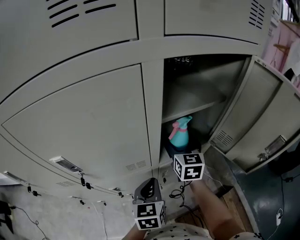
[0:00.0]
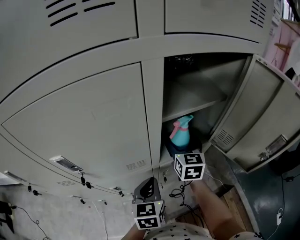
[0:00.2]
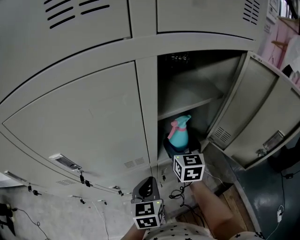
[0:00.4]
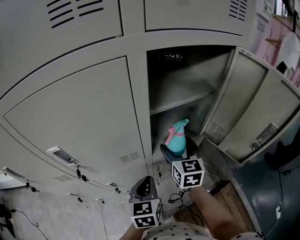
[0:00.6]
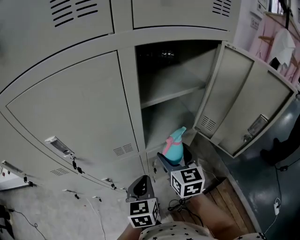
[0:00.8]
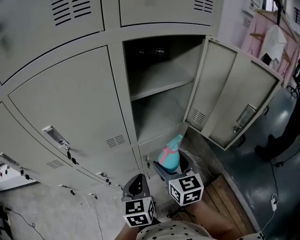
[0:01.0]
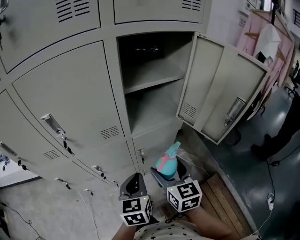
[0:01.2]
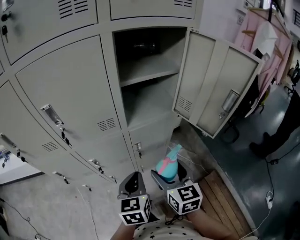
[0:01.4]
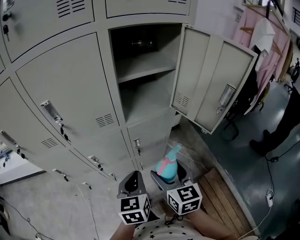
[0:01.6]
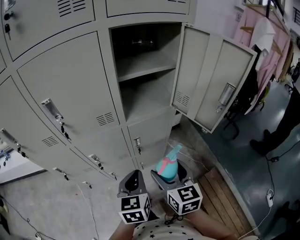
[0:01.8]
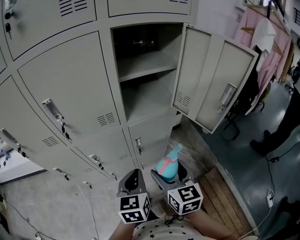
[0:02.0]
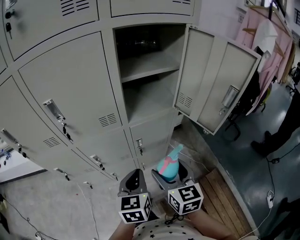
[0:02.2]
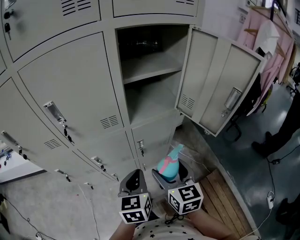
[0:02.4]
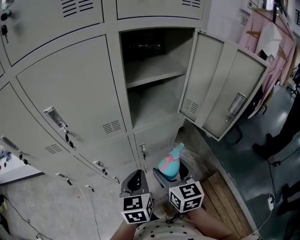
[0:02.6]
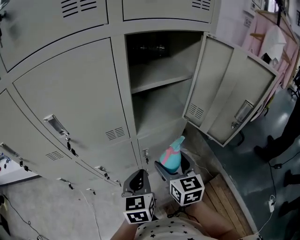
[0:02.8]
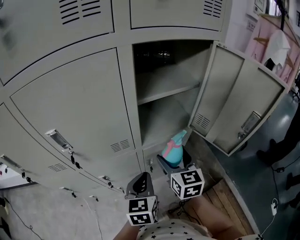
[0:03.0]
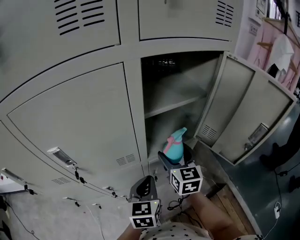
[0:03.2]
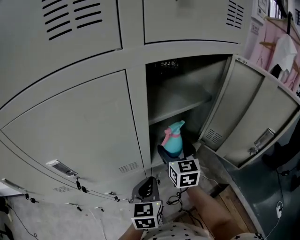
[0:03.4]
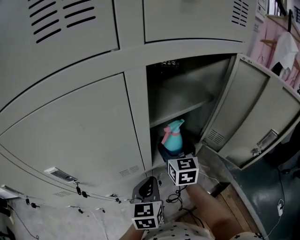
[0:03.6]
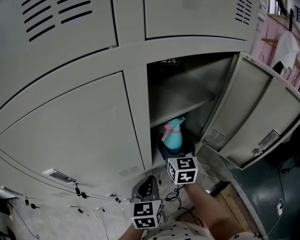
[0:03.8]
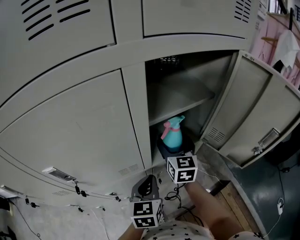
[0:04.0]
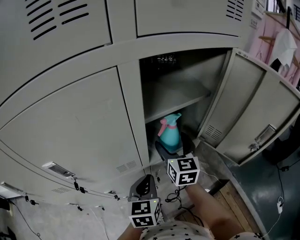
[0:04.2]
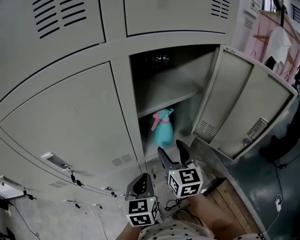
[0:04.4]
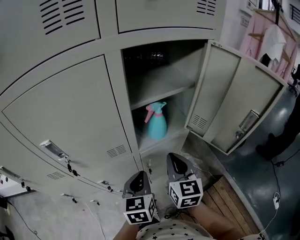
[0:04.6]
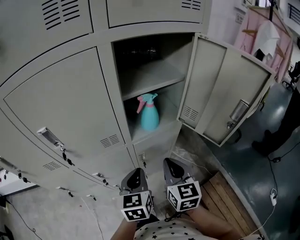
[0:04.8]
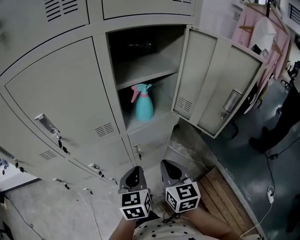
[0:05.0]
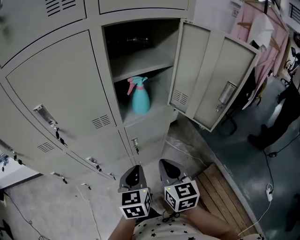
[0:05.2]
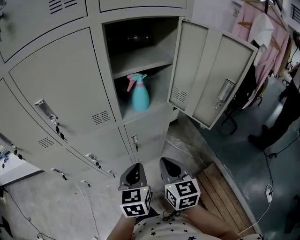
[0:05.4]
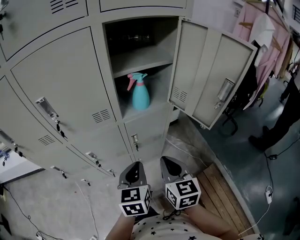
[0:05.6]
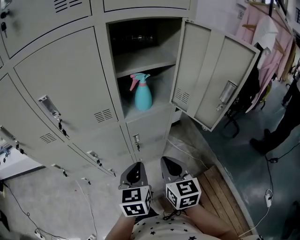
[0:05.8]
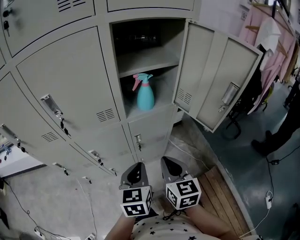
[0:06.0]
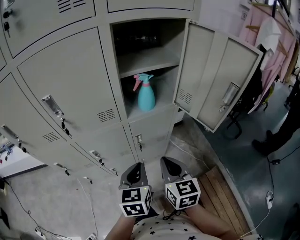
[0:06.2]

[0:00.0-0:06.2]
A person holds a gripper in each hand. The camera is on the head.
0:00.0 to 0:01.6: The right gripper travels backward by about 30 cm. The left gripper moves backward, about 15 cm.
0:01.6 to 0:03.2: The right gripper moves forward, about 25 cm. The left gripper heads forward, covering roughly 15 cm.
0:03.2 to 0:04.6: The right gripper goes approximately 10 cm backward, and closes up.
0:04.6 to 0:06.2: The grippers both shift backward by roughly 15 cm.

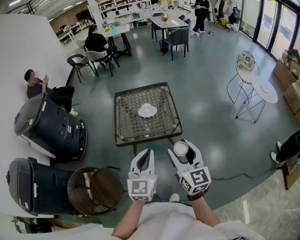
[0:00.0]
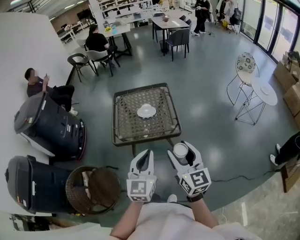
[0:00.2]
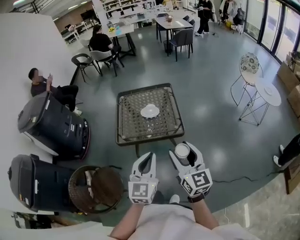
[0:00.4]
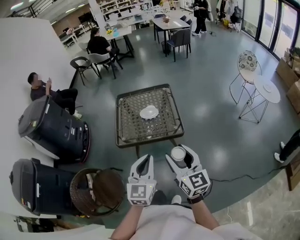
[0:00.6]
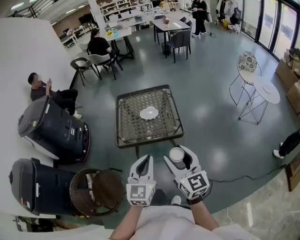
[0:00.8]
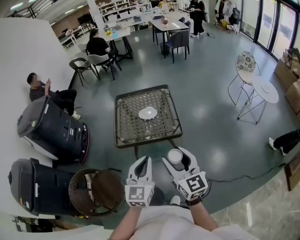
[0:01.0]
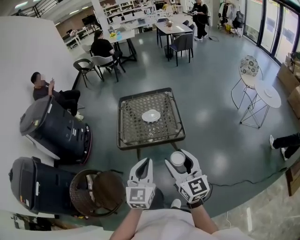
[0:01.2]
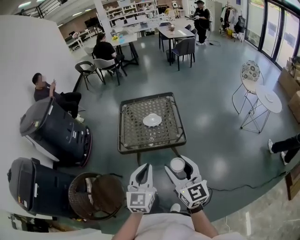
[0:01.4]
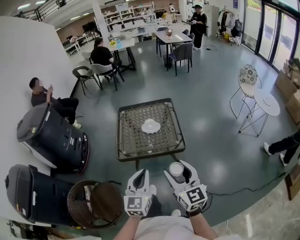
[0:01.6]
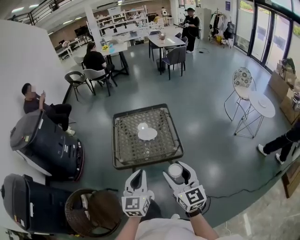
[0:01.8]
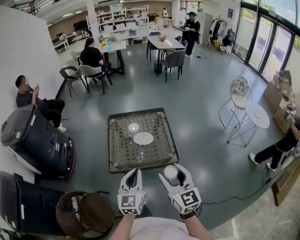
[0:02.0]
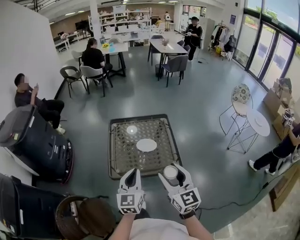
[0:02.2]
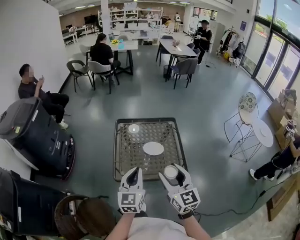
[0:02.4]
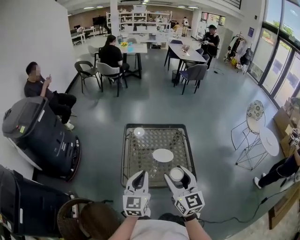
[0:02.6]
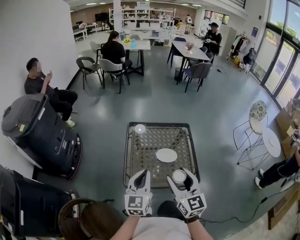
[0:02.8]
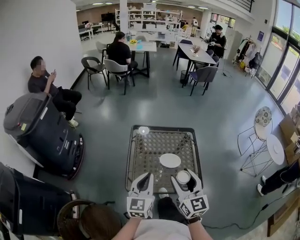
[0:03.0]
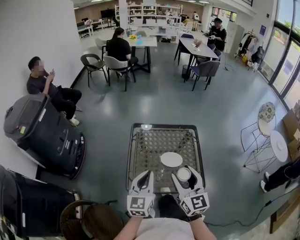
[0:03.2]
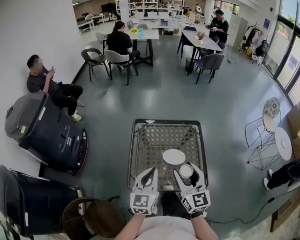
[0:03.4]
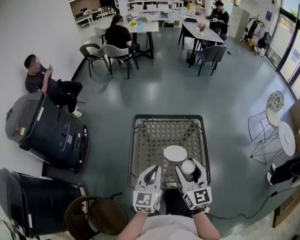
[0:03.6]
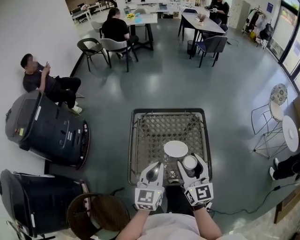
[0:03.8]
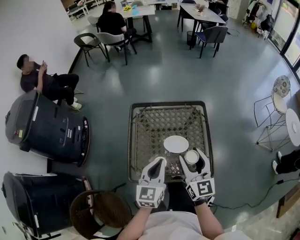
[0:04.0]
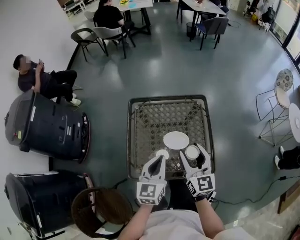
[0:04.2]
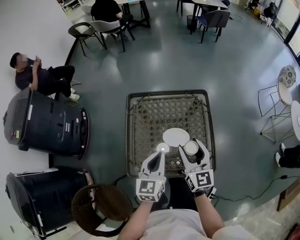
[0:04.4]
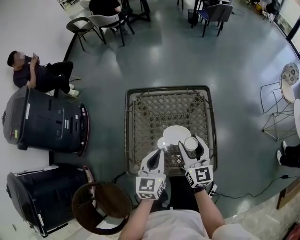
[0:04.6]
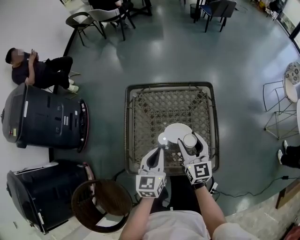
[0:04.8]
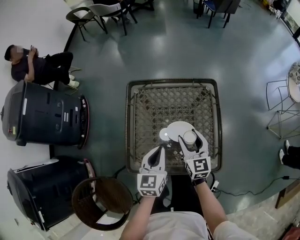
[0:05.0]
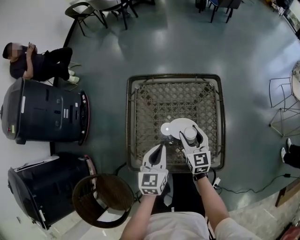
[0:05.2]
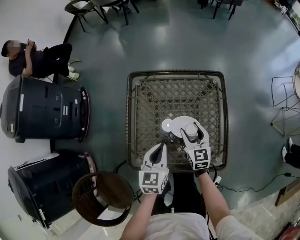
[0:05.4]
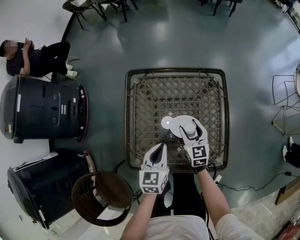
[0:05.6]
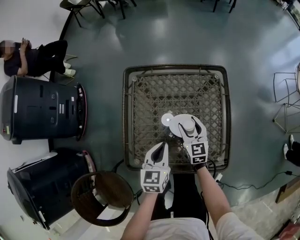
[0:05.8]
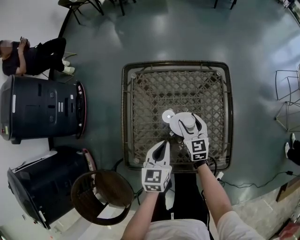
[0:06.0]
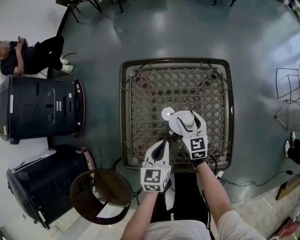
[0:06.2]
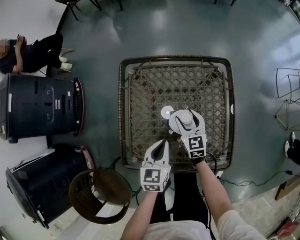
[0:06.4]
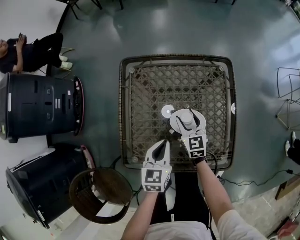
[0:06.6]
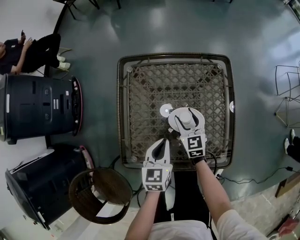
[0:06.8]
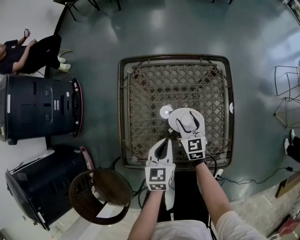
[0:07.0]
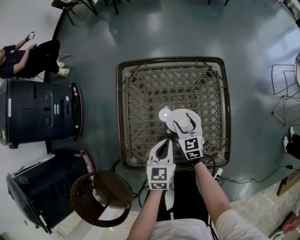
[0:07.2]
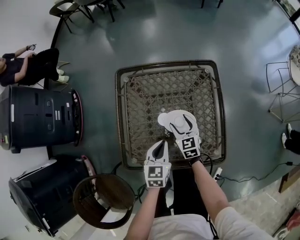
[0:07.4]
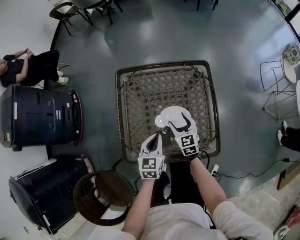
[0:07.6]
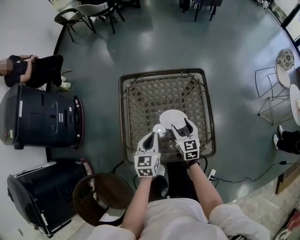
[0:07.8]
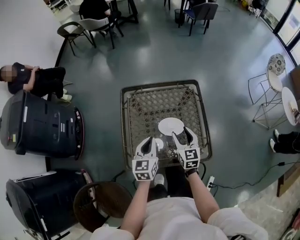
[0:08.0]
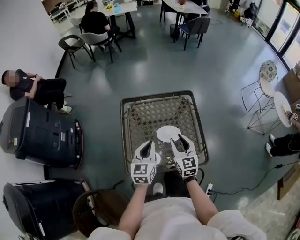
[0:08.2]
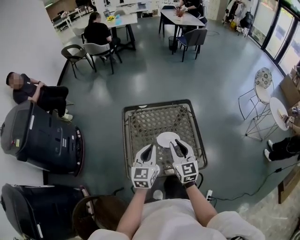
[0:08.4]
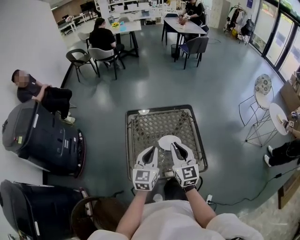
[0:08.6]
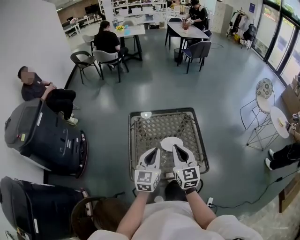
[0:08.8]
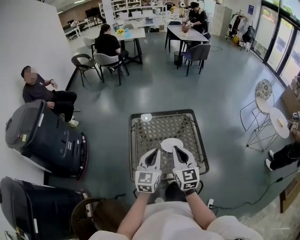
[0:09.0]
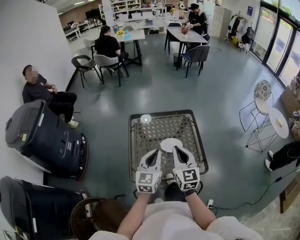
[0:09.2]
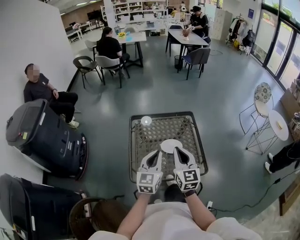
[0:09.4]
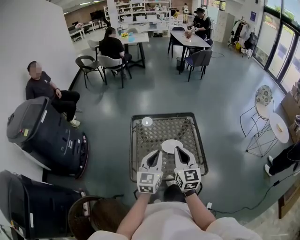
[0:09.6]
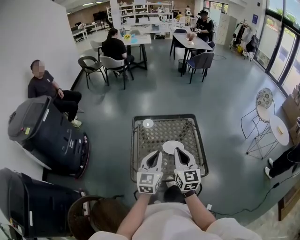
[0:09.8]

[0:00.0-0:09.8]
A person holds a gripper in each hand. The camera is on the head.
0:00.0 to 0:01.4: There are only small adjustments of the grippers.
0:01.4 to 0:02.8: Both grippers travel together forward and to the left, roughly 30 cm.
0:02.8 to 0:04.2: The left gripper moves forward, to the right and downward, approximately 15 cm. Meanwhile the right gripper travels forward, downward and to the right by roughly 20 cm.
0:04.2 to 0:05.6: The left gripper shifts about 15 cm downward; the right gripper heads downward and forward, covering roughly 25 cm, and rotates some 20 degrees.
0:05.6 to 0:07.0: The two grippers go some 5 cm downward.
0:07.0 to 0:08.4: The right gripper goes about 30 cm upward and backward, swivels about 20 degrees, and closes up, while the left gripper travels upward by some 20 cm, and turns by some 30 degrees.
0:08.4 to 0:09.8: The left gripper goes about 5 cm backward, while the right gripper shifts approximately 10 cm backward and upward.

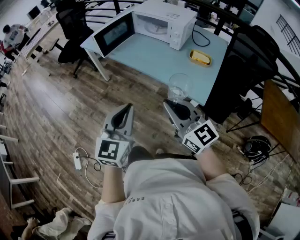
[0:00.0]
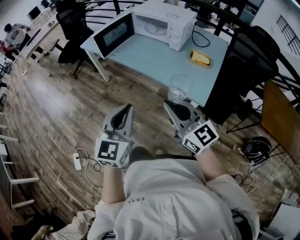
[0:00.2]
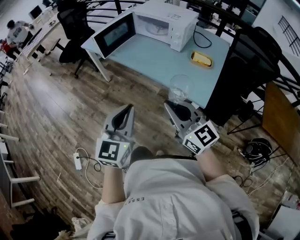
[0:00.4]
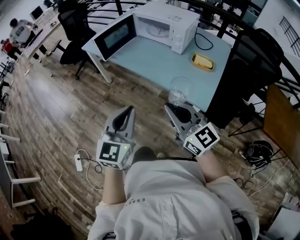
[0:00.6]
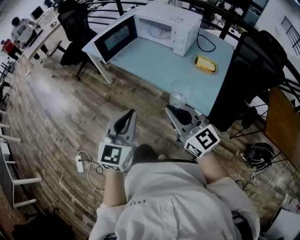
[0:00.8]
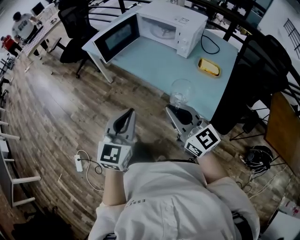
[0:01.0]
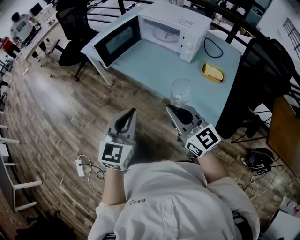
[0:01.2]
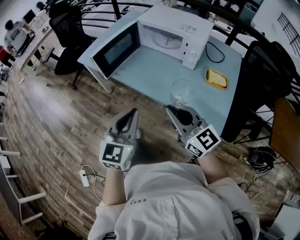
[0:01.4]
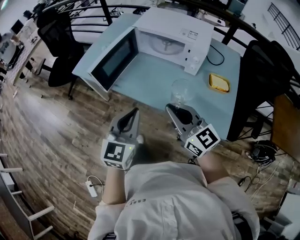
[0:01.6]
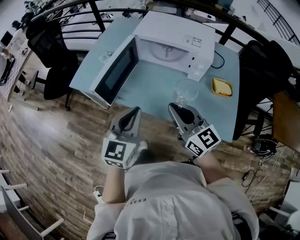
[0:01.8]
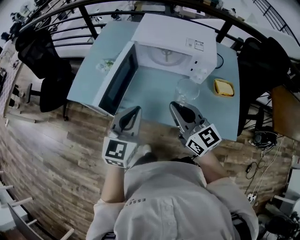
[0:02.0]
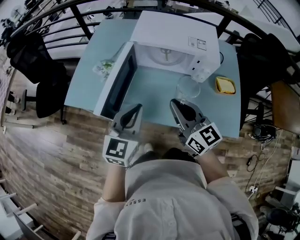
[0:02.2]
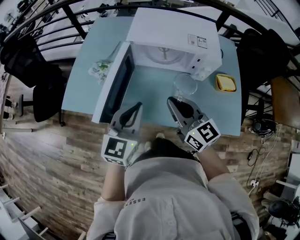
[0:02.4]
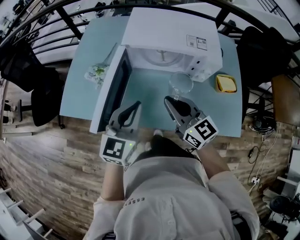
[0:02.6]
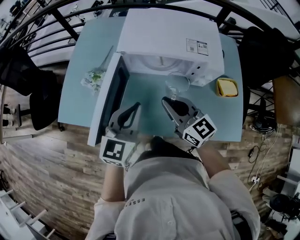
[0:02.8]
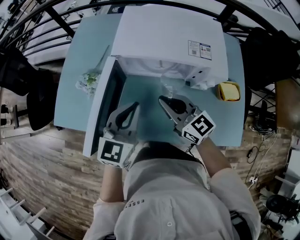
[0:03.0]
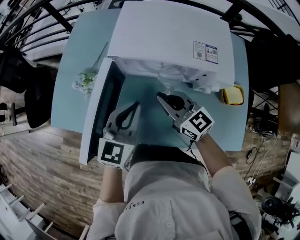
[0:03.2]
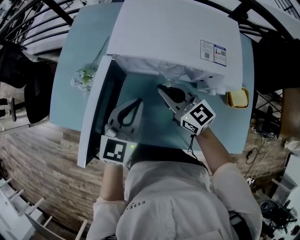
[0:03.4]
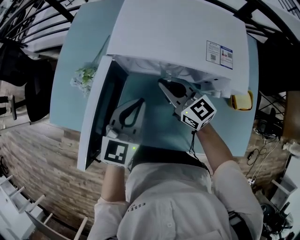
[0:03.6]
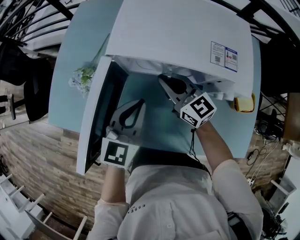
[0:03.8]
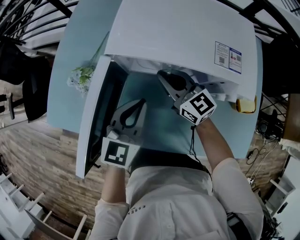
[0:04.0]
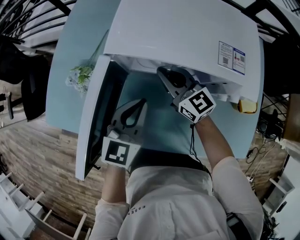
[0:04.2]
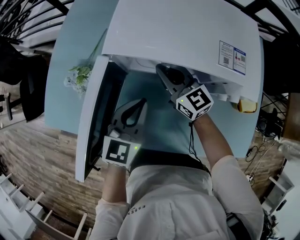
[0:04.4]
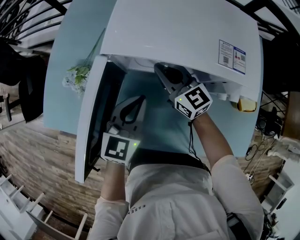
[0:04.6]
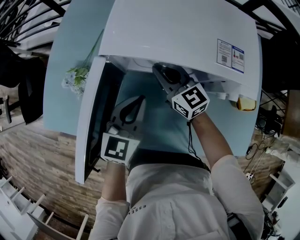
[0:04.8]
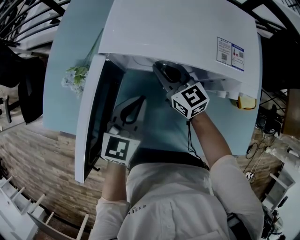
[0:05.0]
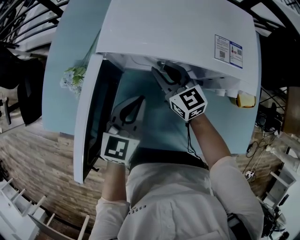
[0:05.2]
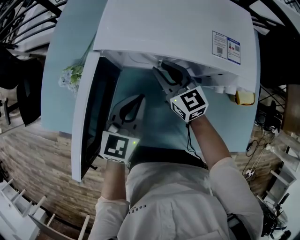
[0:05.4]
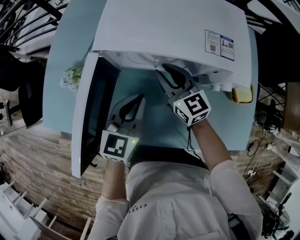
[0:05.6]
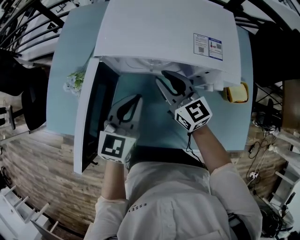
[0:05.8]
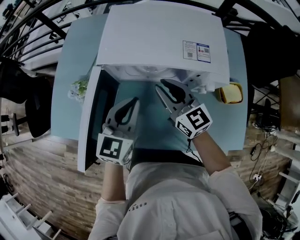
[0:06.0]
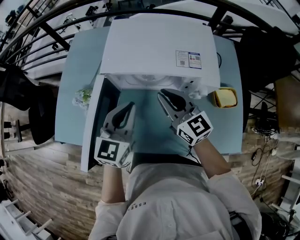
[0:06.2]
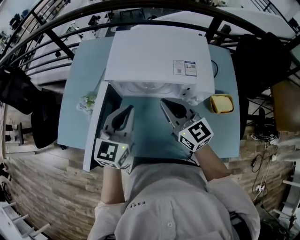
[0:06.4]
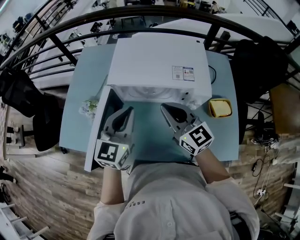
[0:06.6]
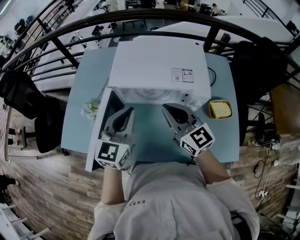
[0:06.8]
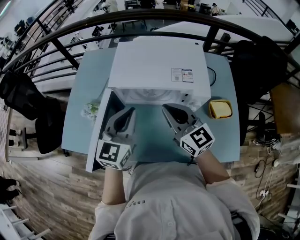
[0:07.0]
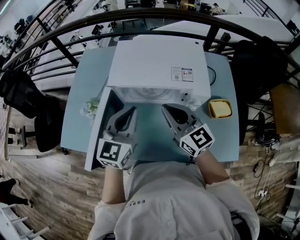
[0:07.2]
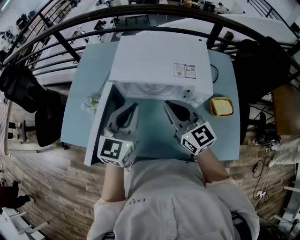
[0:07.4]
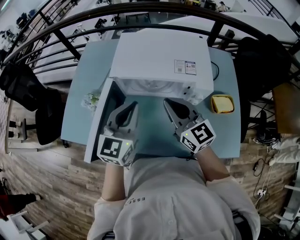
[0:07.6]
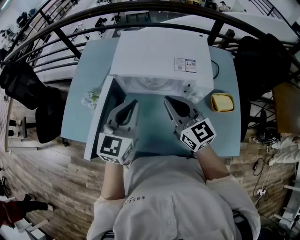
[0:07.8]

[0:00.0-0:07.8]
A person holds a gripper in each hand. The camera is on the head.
0:00.0 to 0:01.6: Both grippers travel together forward, approximately 30 cm.
0:01.6 to 0:03.2: Both grippers travel together forward, approximately 35 cm. The left gripper swivels approximately 20 degrees.
0:03.2 to 0:04.6: The right gripper moves forward and downward, approximately 15 cm, while the left gripper goes approximately 10 cm downward.
0:04.6 to 0:06.2: The right gripper shifts about 15 cm upward, backward and to the right. Meanwhile the left gripper heads upward, covering some 10 cm.
0:06.2 to 0:07.8: The grippers both shift upward by approximately 5 cm.
